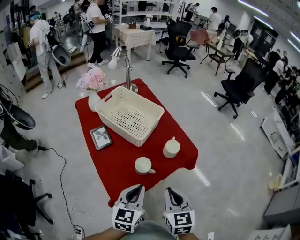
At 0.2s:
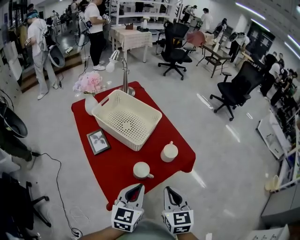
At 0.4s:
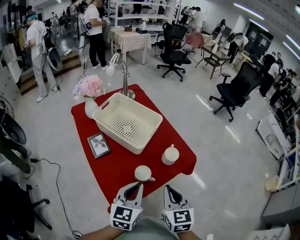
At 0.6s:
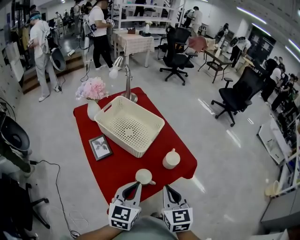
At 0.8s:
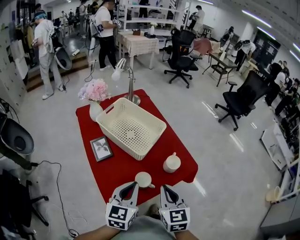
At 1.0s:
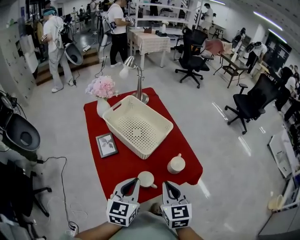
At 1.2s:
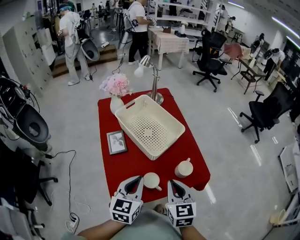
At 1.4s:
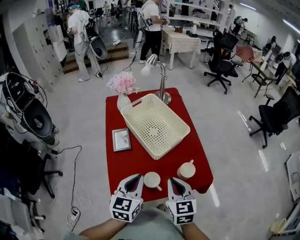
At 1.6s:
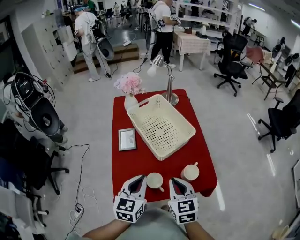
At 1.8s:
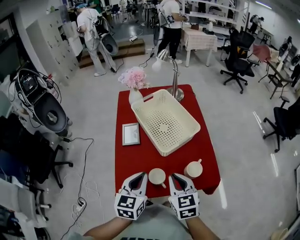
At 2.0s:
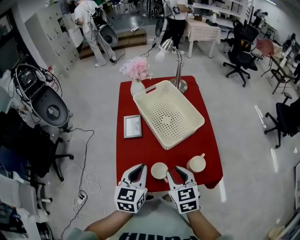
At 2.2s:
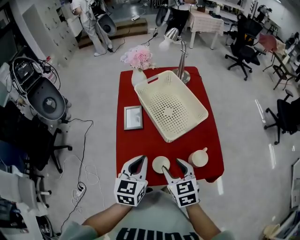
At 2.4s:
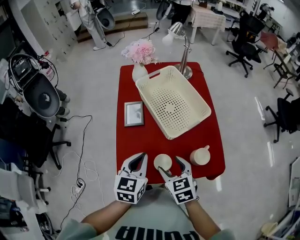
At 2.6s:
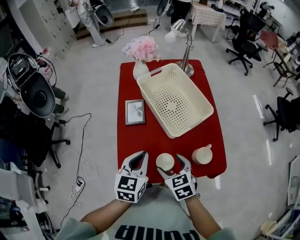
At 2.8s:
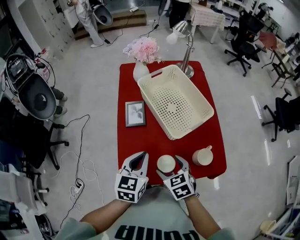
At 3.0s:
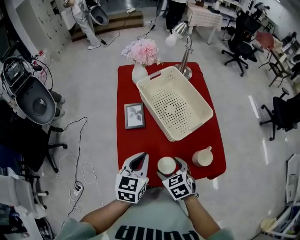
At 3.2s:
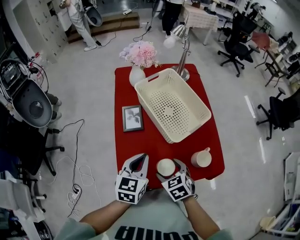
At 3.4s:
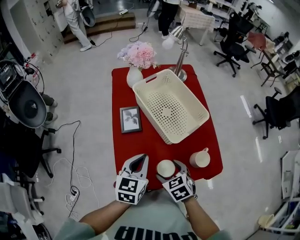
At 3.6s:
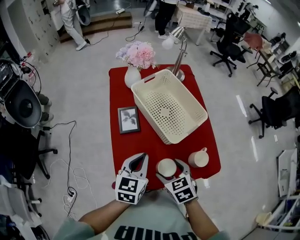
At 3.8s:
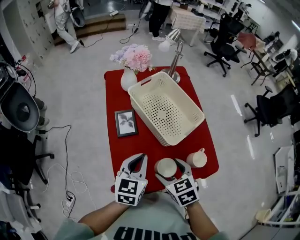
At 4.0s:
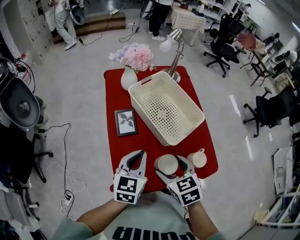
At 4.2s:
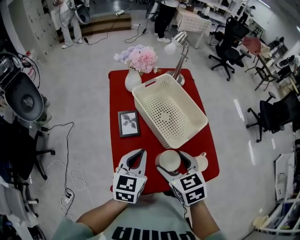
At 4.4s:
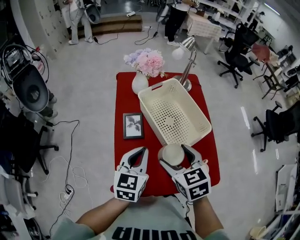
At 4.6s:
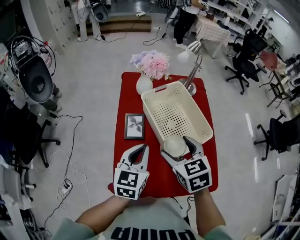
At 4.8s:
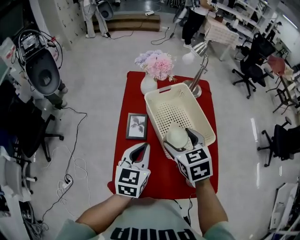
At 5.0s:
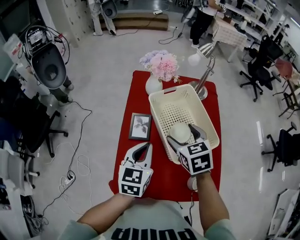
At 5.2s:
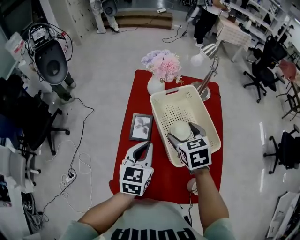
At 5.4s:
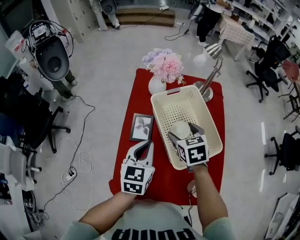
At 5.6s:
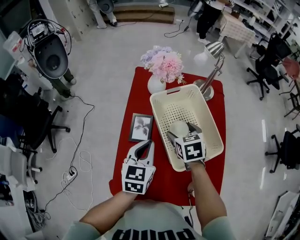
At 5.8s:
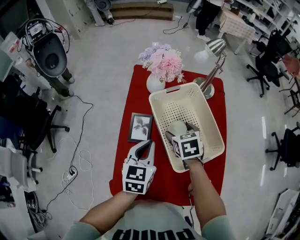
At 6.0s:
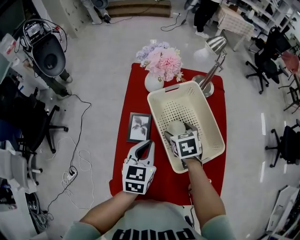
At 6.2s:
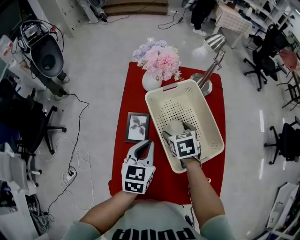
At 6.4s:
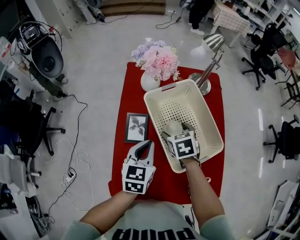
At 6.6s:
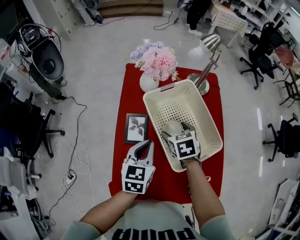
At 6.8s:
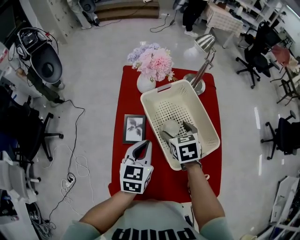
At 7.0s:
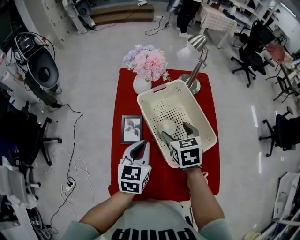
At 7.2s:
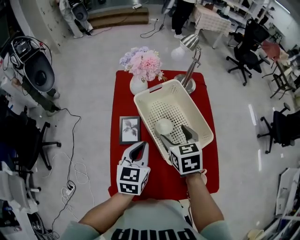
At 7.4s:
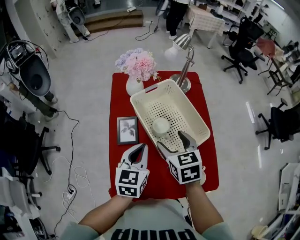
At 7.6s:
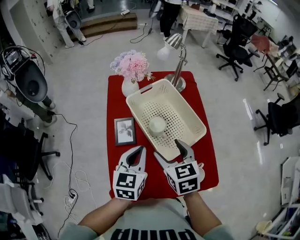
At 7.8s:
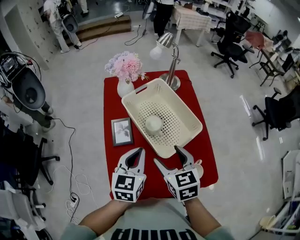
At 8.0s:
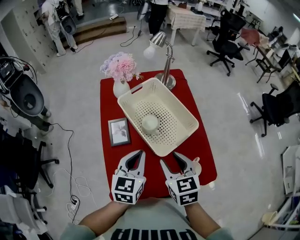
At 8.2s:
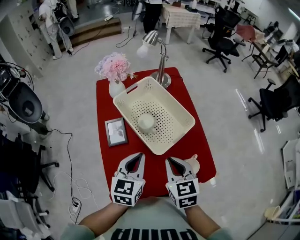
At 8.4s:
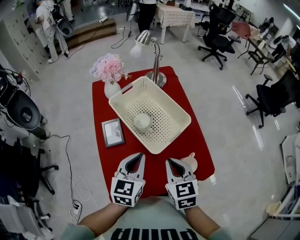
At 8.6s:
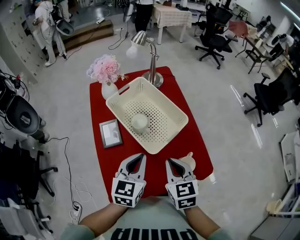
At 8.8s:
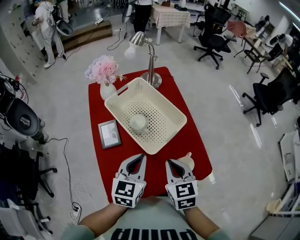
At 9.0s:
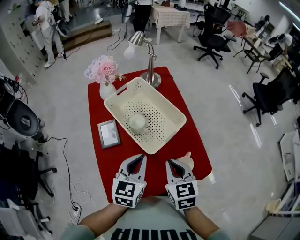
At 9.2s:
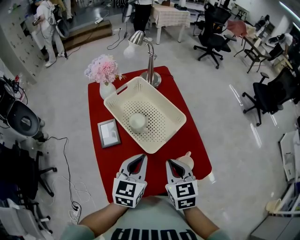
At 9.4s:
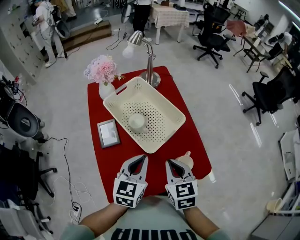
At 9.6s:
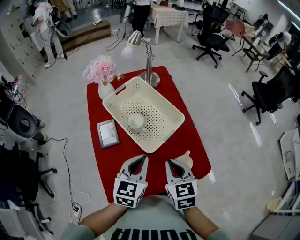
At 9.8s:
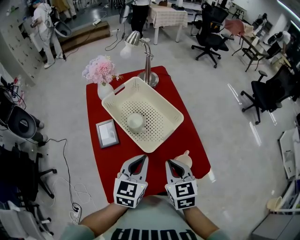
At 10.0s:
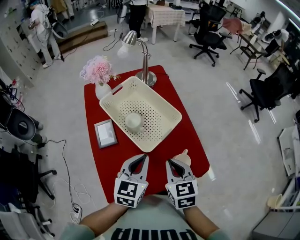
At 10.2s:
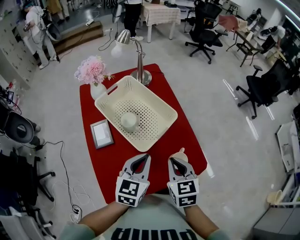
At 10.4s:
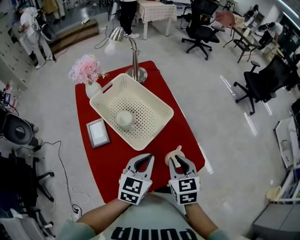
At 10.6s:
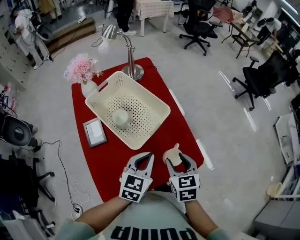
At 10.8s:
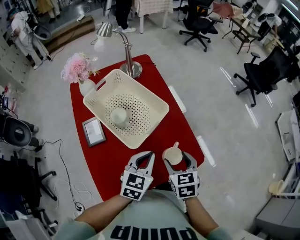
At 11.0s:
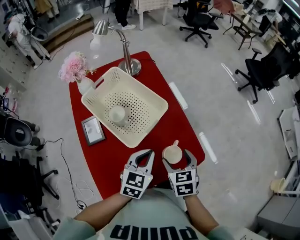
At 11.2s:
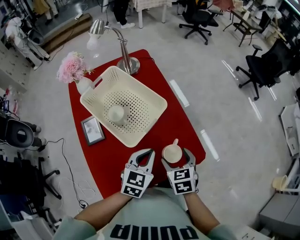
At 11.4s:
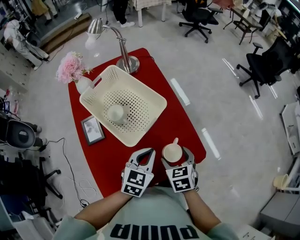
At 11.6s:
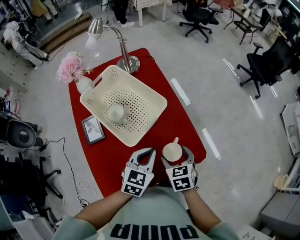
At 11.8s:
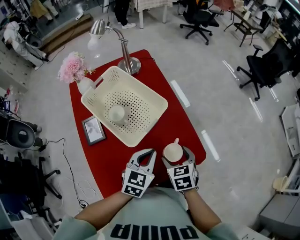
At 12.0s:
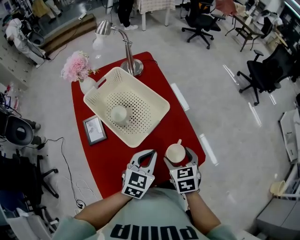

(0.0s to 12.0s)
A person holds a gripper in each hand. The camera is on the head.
0.0s - 1.6s: The left gripper changes place by some 10 cm, and changes its angle by approximately 30 degrees. Meanwhile the right gripper changes place by about 15 cm, and changes its angle by about 30 degrees.
1.6s - 3.0s: The left gripper shifts some 5 cm to the left and forward; the right gripper heads downward and to the left, covering about 15 cm, turns by about 30 degrees, and opens its fingers.
3.0s - 4.4s: The left gripper goes approximately 5 cm forward. The right gripper travels upward and forward by approximately 20 cm.
4.4s - 6.0s: The right gripper is displaced forward and downward by about 25 cm, while the left gripper is displaced forward and downward by about 10 cm.
6.0s - 7.6s: The right gripper travels backward and upward by about 20 cm, and rotates roughly 20 degrees. The left gripper moves backward, approximately 5 cm.
7.6s - 9.0s: The right gripper shifts some 15 cm to the right and backward, and closes its fingers, while the left gripper goes about 10 cm to the right.
9.0s - 10.4s: Both grippers move to the right, approximately 5 cm.
10.4s - 12.0s: The right gripper shifts roughly 5 cm downward, and opens its fingers. Meanwhile the left gripper moves roughly 5 cm.

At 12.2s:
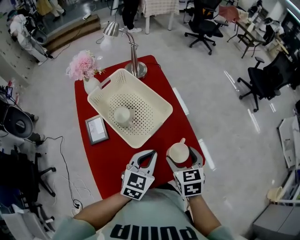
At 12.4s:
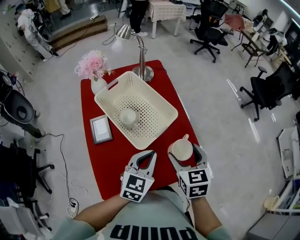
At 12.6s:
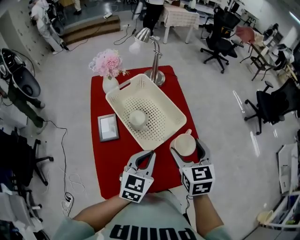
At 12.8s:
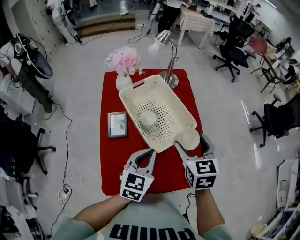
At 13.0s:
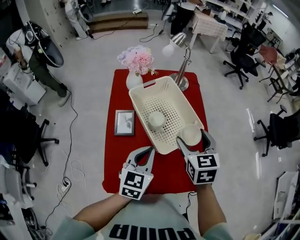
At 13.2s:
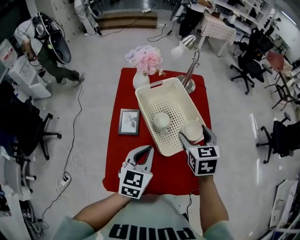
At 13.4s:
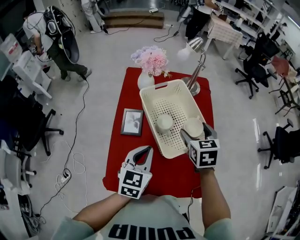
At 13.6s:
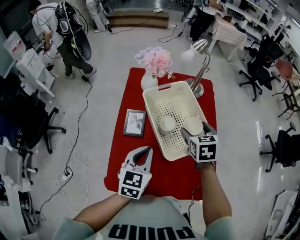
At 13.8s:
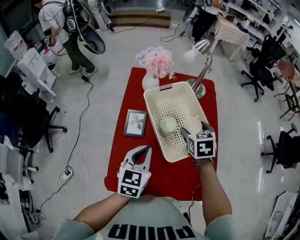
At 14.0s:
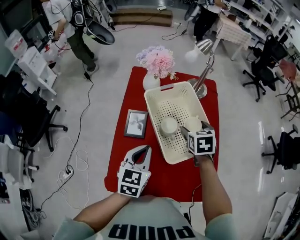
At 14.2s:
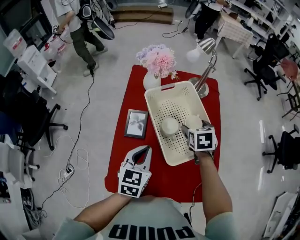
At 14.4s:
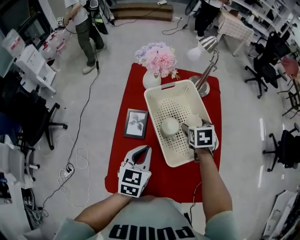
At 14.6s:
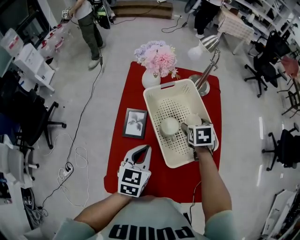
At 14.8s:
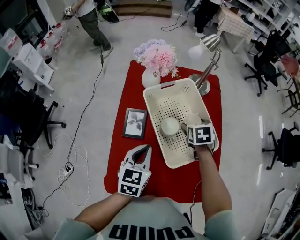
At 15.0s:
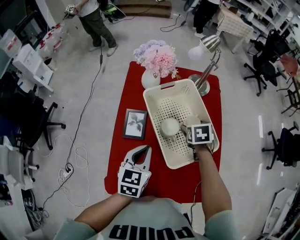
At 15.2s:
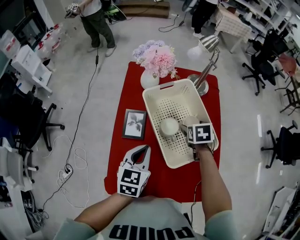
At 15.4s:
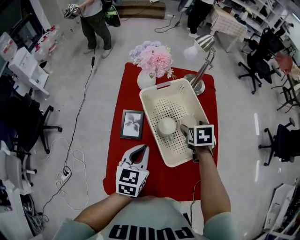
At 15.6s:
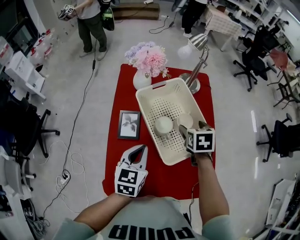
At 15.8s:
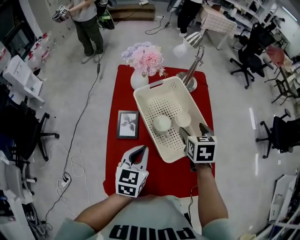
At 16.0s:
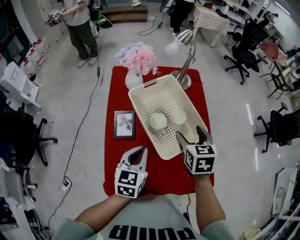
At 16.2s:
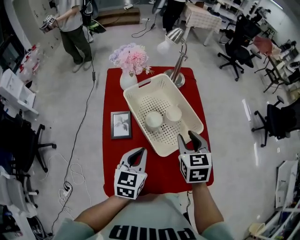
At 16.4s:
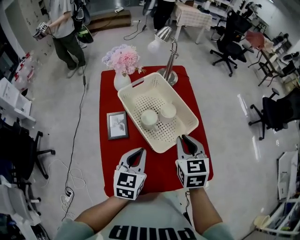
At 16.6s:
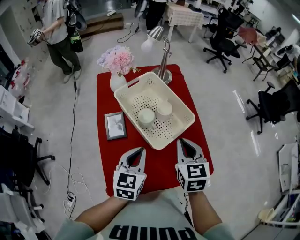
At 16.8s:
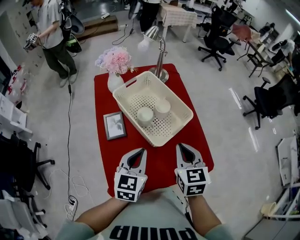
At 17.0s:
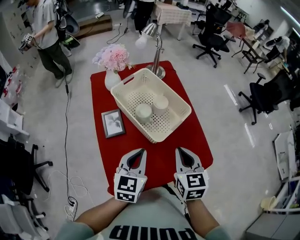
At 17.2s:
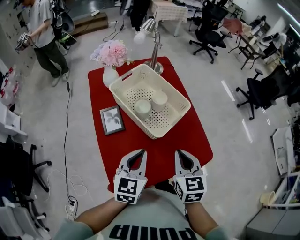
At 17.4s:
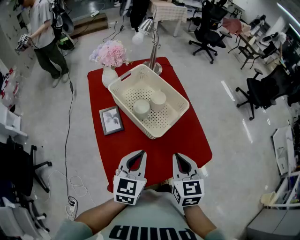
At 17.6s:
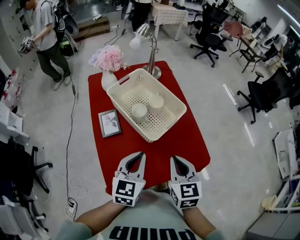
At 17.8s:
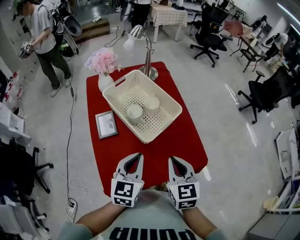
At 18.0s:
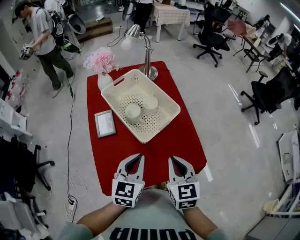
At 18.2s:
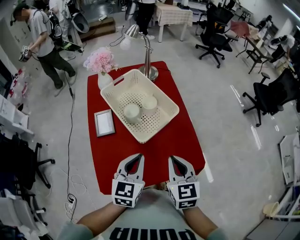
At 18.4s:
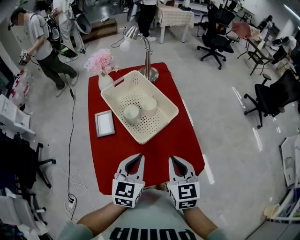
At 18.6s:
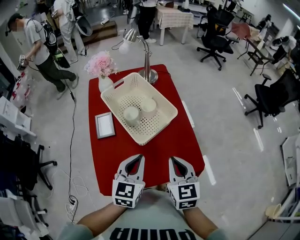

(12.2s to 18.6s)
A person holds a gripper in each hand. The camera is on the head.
12.2s - 13.8s: The left gripper ends up approximately 20 cm from where it was, and changes its angle by some 40 degrees. The right gripper goes upward and returns, approximately 10 cm each way, and turns by approximately 20 degrees.
13.8s - 15.4s: The right gripper moves downward, approximately 5 cm.
15.4s - 17.0s: The right gripper travels backward by roughly 25 cm, points its fingers roughly 30 degrees further upward, and closes its fingers; the left gripper is displaced backward by approximately 10 cm, and changes its angle by approximately 20 degrees.
17.0s - 18.6s: Both grippers travel together to the right, some 5 cm.

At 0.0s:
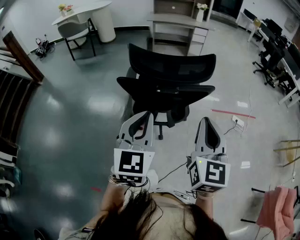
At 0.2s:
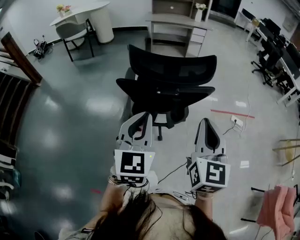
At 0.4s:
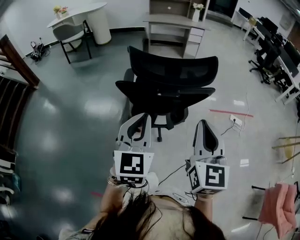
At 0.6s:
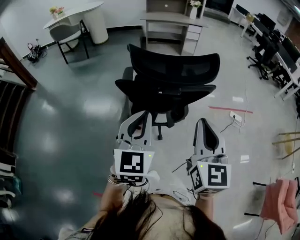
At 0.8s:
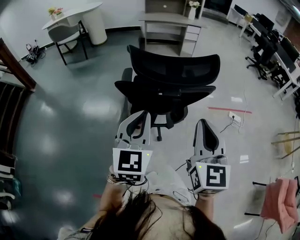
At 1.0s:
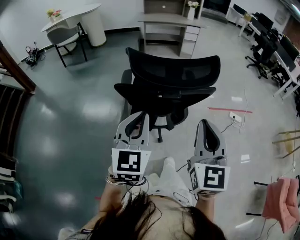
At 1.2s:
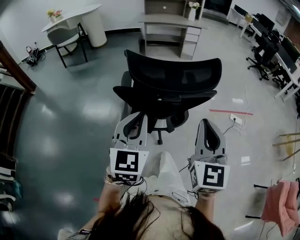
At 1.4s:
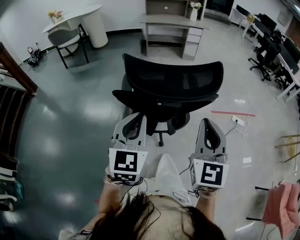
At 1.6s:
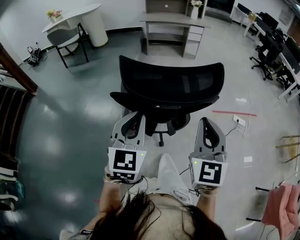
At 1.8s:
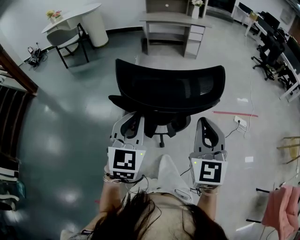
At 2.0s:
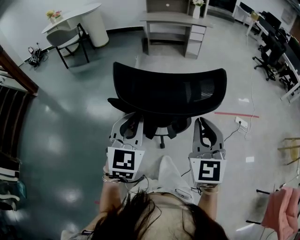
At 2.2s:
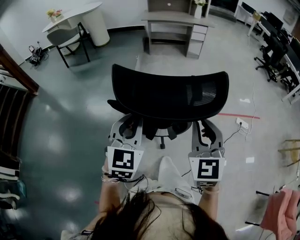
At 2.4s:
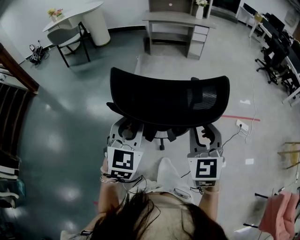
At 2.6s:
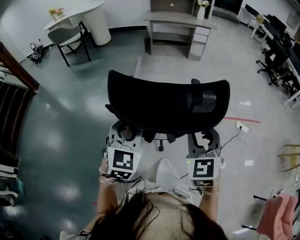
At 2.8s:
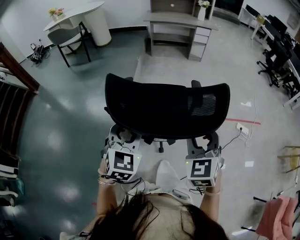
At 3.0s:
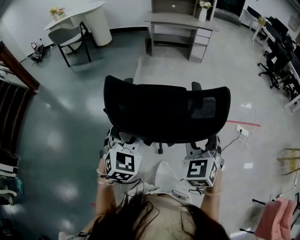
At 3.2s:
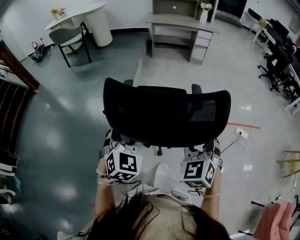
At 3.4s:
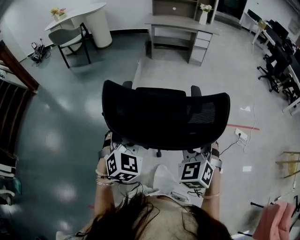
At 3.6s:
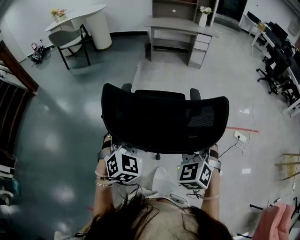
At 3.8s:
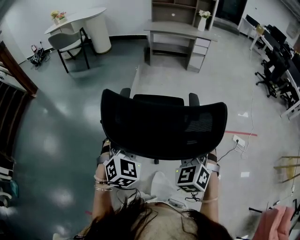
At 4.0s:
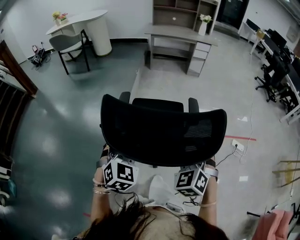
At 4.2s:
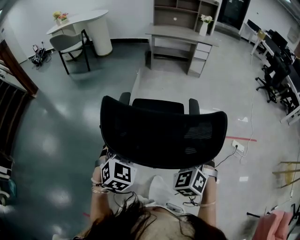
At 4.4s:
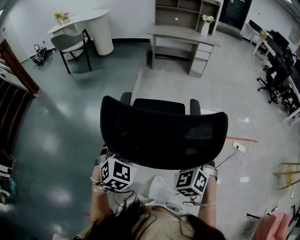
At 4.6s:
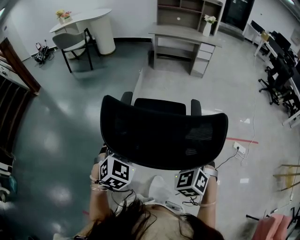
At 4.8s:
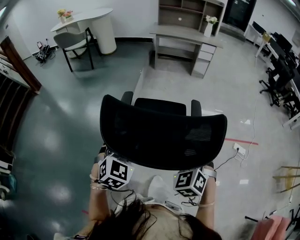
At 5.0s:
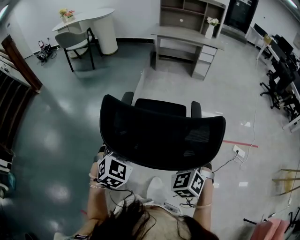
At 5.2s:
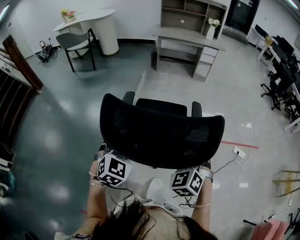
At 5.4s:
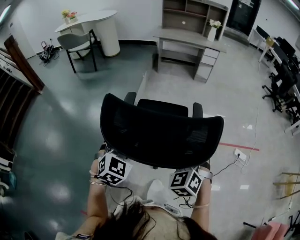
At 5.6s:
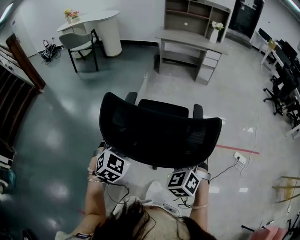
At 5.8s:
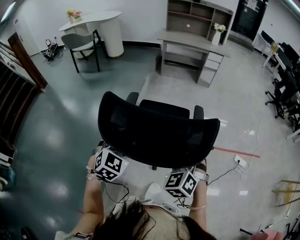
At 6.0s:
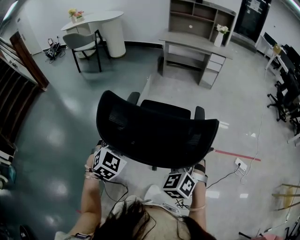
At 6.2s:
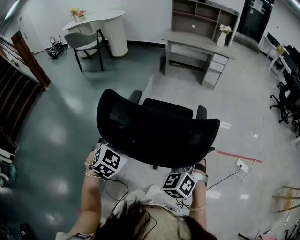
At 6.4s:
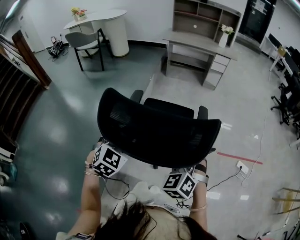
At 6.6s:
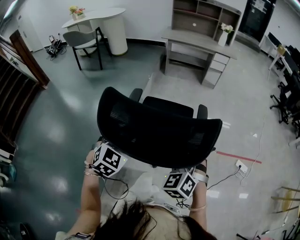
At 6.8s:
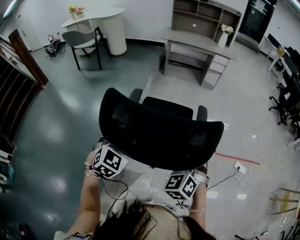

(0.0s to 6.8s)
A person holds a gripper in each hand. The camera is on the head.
0.0s - 1.4s: The grippers both shift forward by about 5 cm.
1.4s - 2.8s: The grippers both shift forward and downward by roughly 10 cm. The left gripper opens its fingers, while the right gripper changes its angle by roughly 30 degrees, and opens up.
2.8s - 4.0s: The right gripper changes place by approximately 5 cm, and turns by approximately 20 degrees.
4.0s - 5.4s: The grippers stay close to where they were, moving slightly.
5.4s - 6.8s: The two grippers go approximately 10 cm forward.
